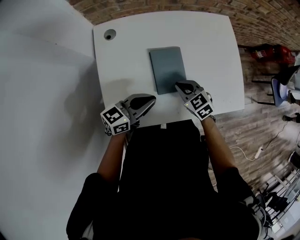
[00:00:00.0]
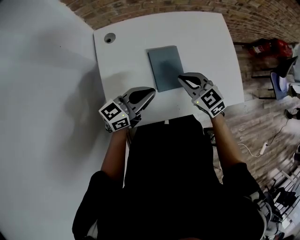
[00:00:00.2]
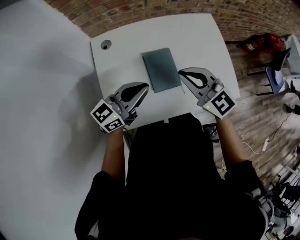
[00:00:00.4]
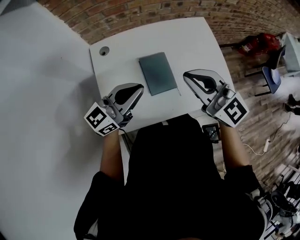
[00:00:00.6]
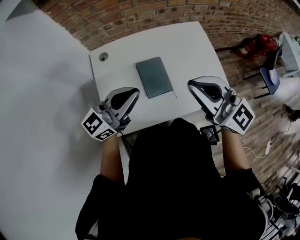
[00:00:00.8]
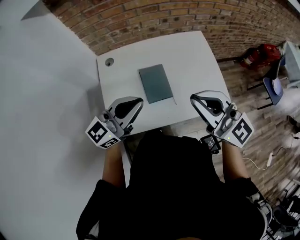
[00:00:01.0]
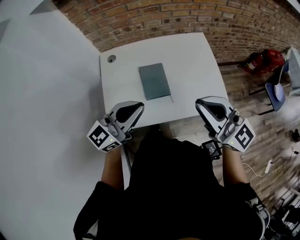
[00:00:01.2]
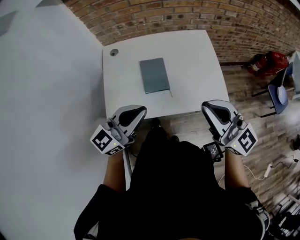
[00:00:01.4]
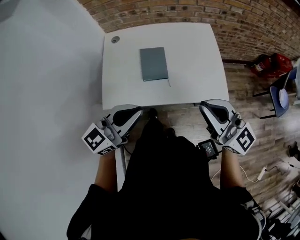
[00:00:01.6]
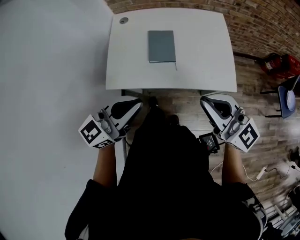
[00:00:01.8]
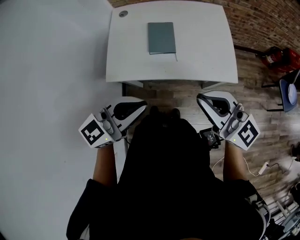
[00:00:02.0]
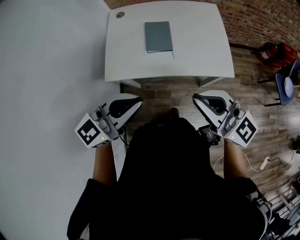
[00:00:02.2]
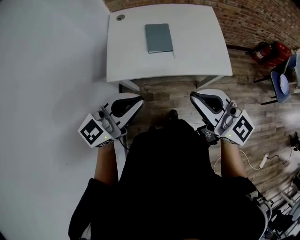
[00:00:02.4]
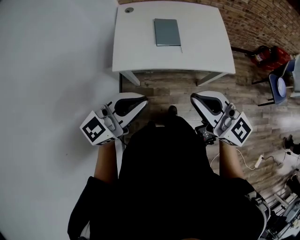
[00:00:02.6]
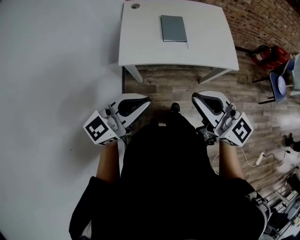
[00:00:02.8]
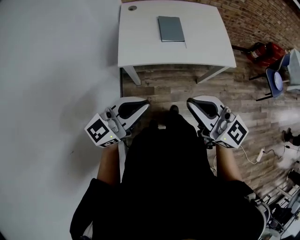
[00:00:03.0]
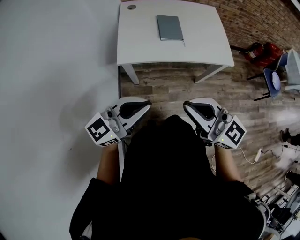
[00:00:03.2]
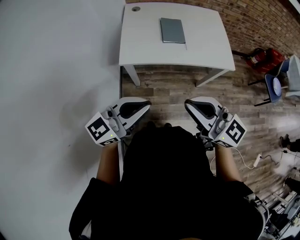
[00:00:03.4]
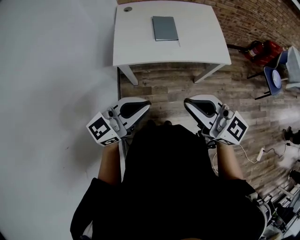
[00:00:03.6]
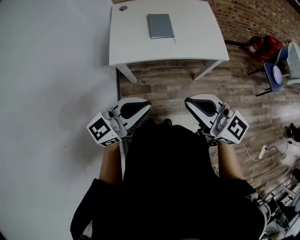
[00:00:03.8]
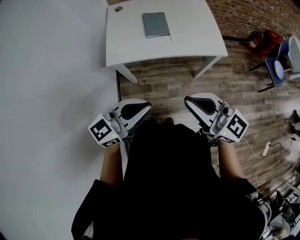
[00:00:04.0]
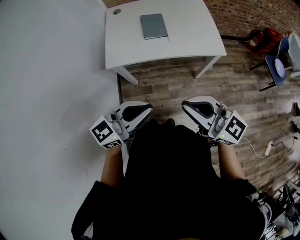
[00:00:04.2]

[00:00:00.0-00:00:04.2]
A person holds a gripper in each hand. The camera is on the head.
00:00:00.0 to 00:00:01.4: The right gripper goes approximately 50 cm upward, backward and to the right, and points its fingers about 50 degrees further upward. The left gripper goes approximately 25 cm upward and backward, and rotates about 30 degrees.
00:00:01.4 to 00:00:02.8: The left gripper shifts roughly 25 cm backward. Meanwhile the right gripper is displaced backward and to the left by about 25 cm.
00:00:02.8 to 00:00:04.2: The two grippers go approximately 10 cm to the right and backward.

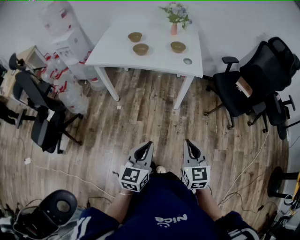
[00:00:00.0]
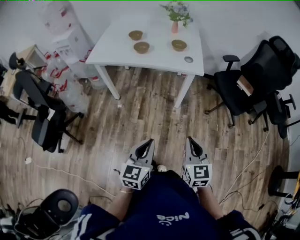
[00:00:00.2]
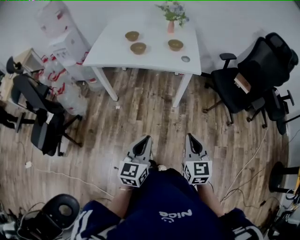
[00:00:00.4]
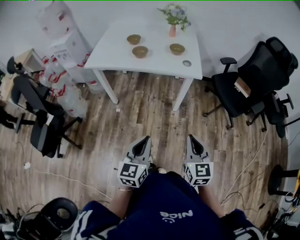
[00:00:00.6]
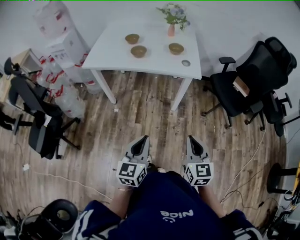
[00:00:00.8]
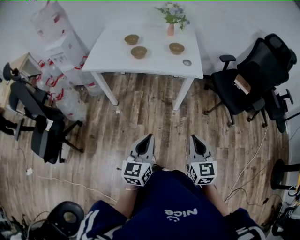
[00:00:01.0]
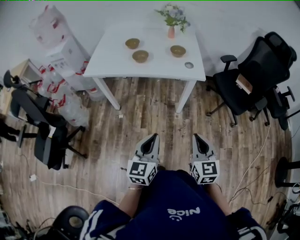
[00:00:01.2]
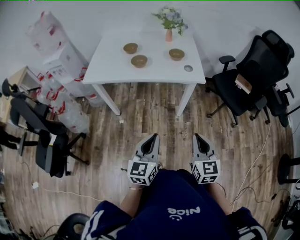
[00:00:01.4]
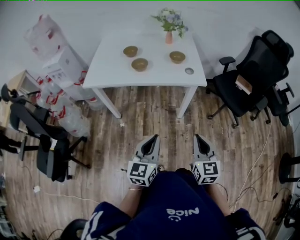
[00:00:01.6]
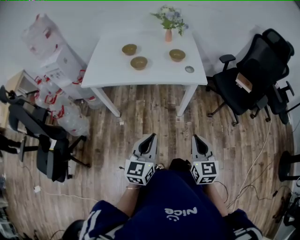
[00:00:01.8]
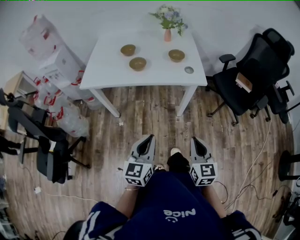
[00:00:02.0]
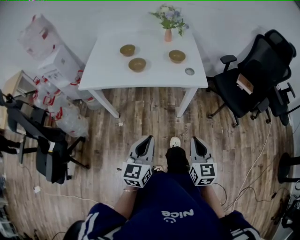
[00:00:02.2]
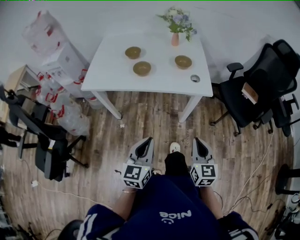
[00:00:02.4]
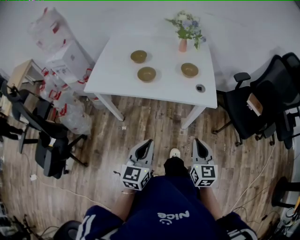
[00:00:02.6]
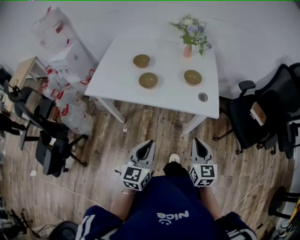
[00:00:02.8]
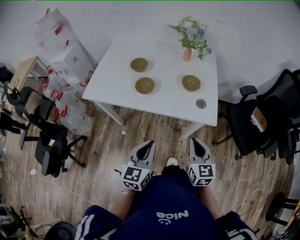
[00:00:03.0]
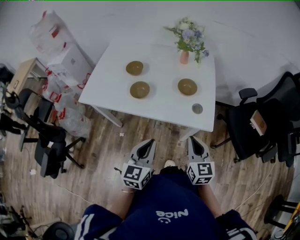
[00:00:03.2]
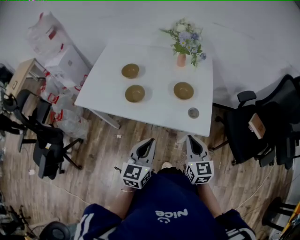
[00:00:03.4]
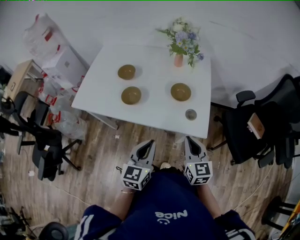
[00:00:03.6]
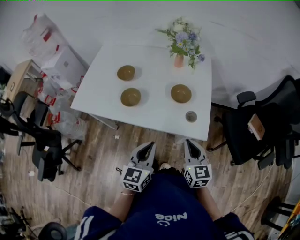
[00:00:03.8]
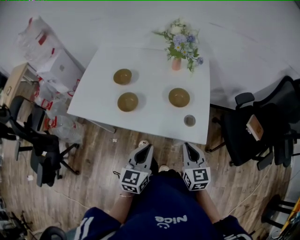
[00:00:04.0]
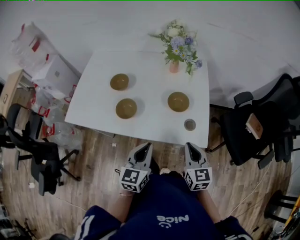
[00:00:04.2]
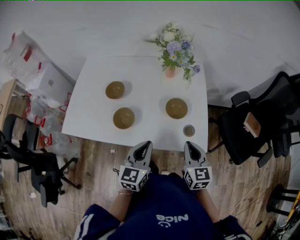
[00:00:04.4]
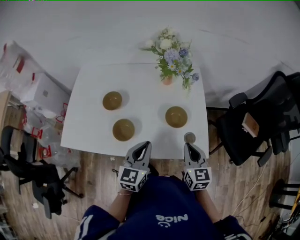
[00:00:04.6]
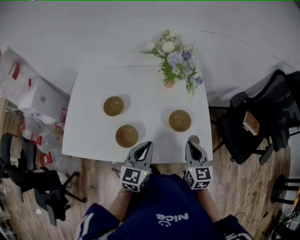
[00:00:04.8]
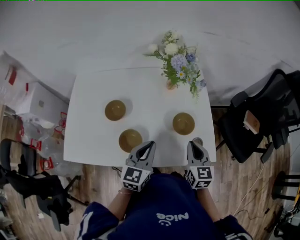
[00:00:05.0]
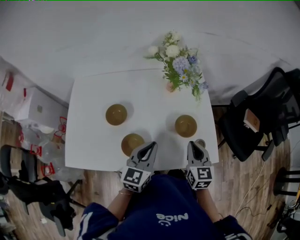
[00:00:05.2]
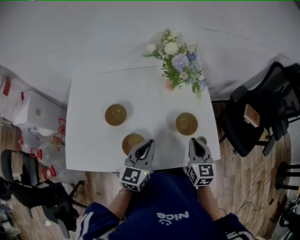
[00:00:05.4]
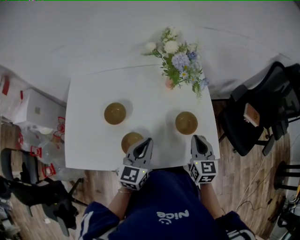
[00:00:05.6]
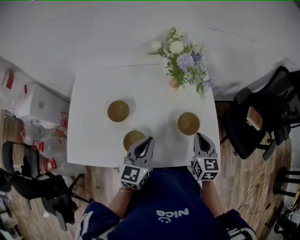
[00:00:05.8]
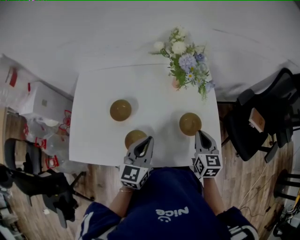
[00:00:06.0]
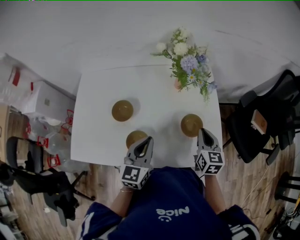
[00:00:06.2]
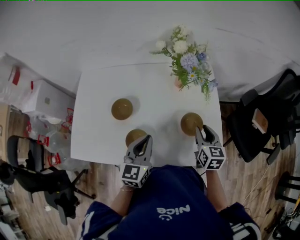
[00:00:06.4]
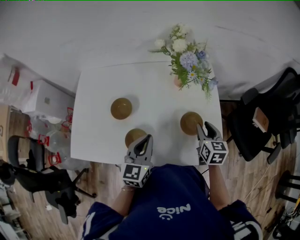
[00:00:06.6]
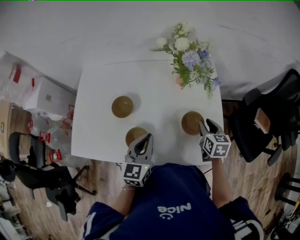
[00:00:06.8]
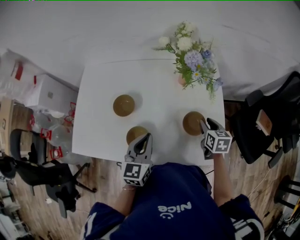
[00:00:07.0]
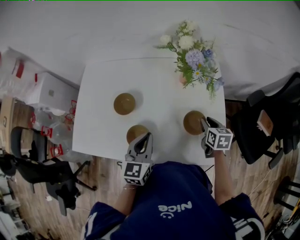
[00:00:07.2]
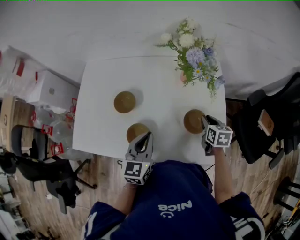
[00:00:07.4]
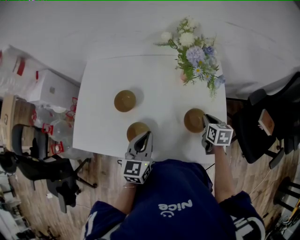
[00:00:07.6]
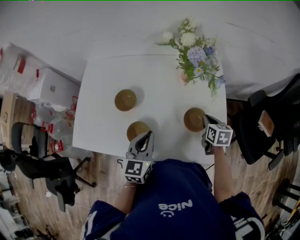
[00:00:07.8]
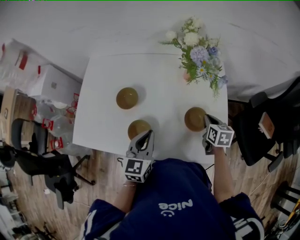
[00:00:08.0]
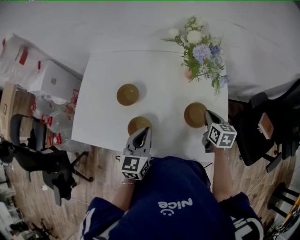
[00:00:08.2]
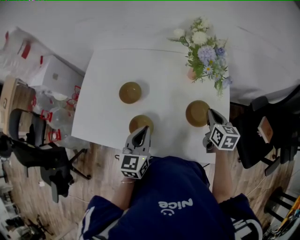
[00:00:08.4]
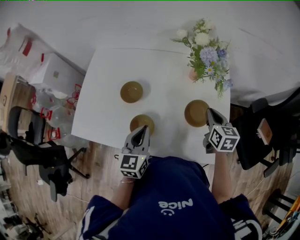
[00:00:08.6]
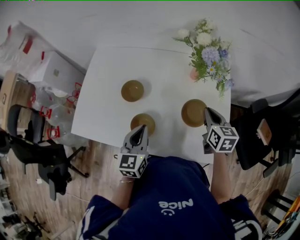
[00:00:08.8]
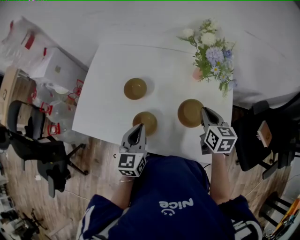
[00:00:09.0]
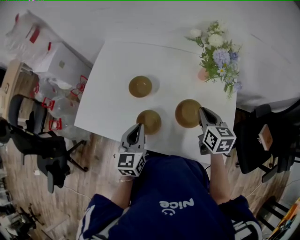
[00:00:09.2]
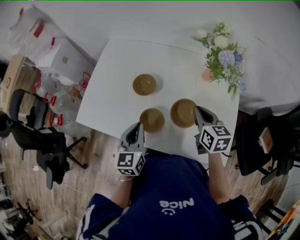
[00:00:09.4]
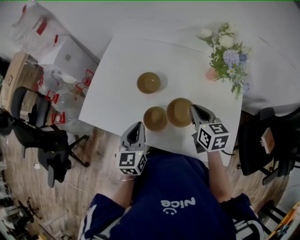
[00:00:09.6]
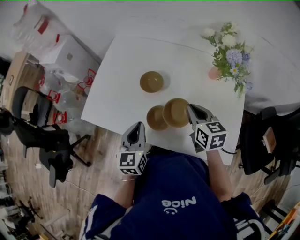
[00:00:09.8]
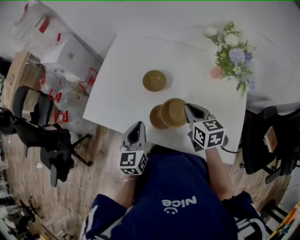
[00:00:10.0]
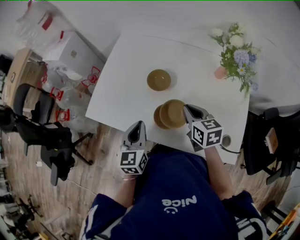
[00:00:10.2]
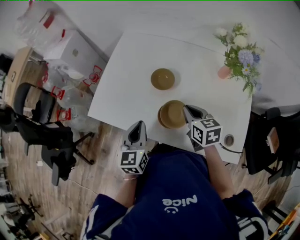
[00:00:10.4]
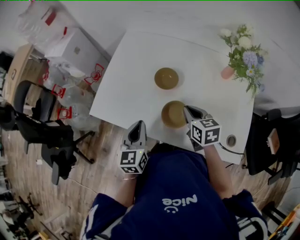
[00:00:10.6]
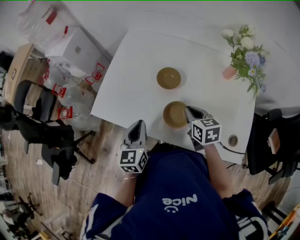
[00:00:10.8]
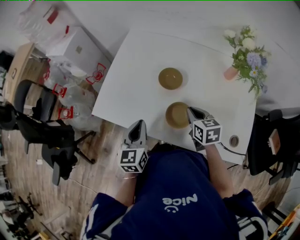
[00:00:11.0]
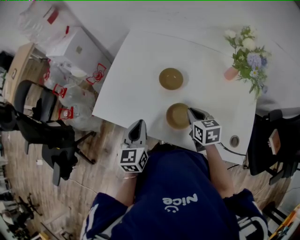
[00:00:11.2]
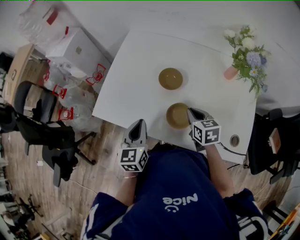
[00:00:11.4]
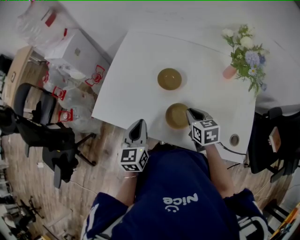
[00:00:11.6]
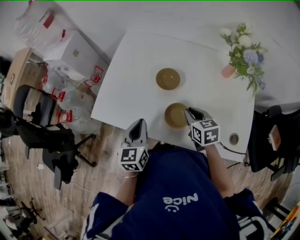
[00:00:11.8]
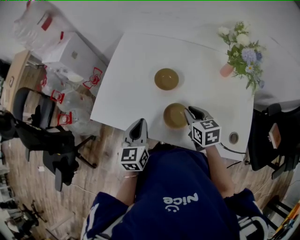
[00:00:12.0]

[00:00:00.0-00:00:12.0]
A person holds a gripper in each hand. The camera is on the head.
00:00:00.0 to 00:00:01.6: The right gripper moves forward, approximately 10 cm. Meanwhile the left gripper travels forward and to the left by roughly 15 cm.
00:00:01.6 to 00:00:03.0: Both grippers move forward, roughly 25 cm.
00:00:03.0 to 00:00:04.4: Both grippers travel together forward, some 20 cm.
00:00:04.4 to 00:00:06.0: The left gripper goes some 15 cm forward and to the left. The right gripper goes about 15 cm forward.
00:00:06.0 to 00:00:07.6: The right gripper shifts approximately 10 cm downward and forward, swivels about 20 degrees, and opens, then closes once more.
00:00:07.6 to 00:00:09.0: The left gripper travels to the left by about 5 cm. The right gripper goes roughly 15 cm upward and to the left.
00:00:09.0 to 00:00:10.4: The right gripper moves to the left, some 20 cm, and changes its angle by roughly 20 degrees. The left gripper moves to the left, roughly 10 cm.
00:00:10.4 to 00:00:12.0: The grippers make only small movements.

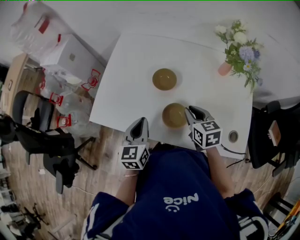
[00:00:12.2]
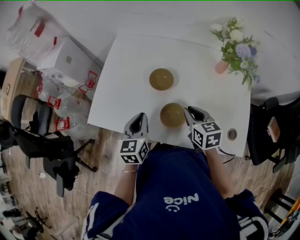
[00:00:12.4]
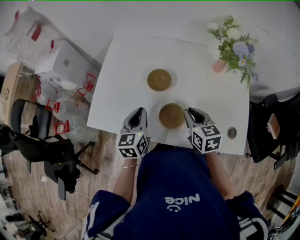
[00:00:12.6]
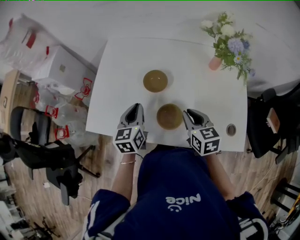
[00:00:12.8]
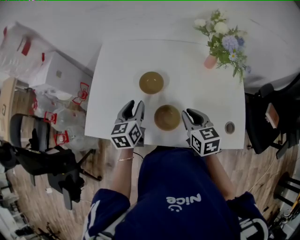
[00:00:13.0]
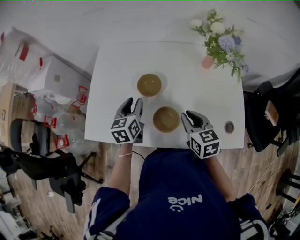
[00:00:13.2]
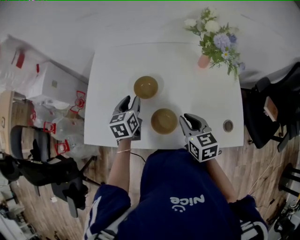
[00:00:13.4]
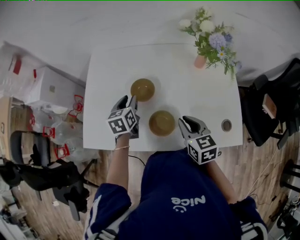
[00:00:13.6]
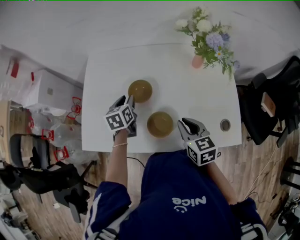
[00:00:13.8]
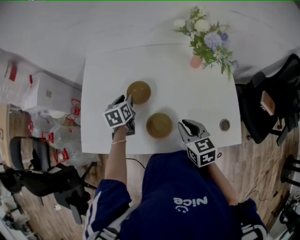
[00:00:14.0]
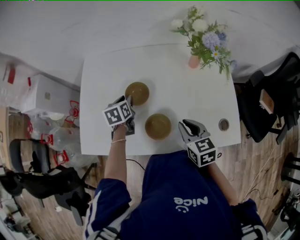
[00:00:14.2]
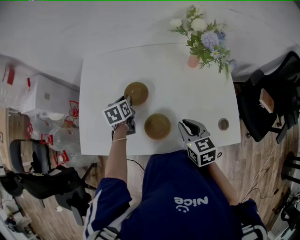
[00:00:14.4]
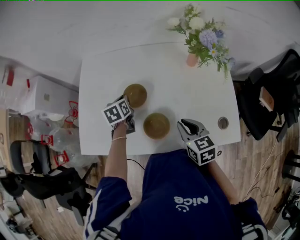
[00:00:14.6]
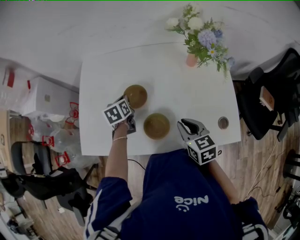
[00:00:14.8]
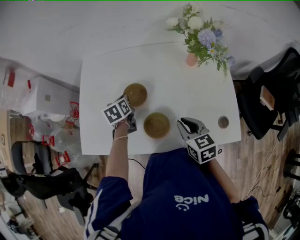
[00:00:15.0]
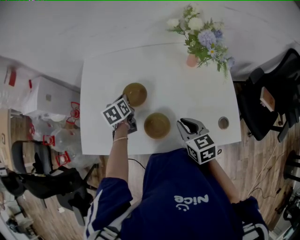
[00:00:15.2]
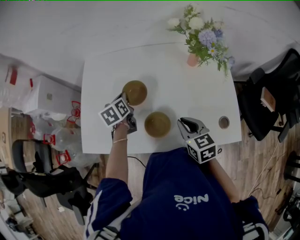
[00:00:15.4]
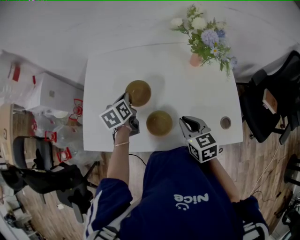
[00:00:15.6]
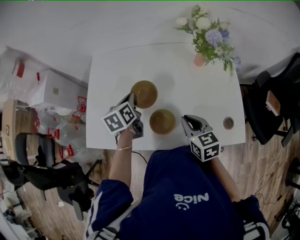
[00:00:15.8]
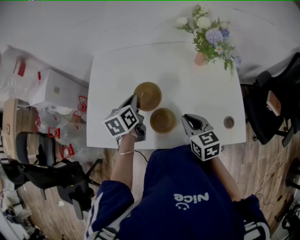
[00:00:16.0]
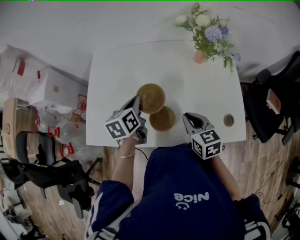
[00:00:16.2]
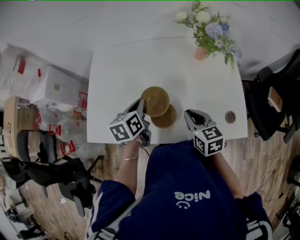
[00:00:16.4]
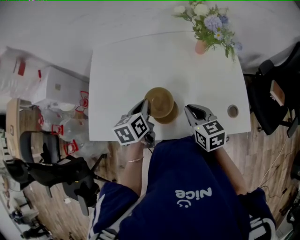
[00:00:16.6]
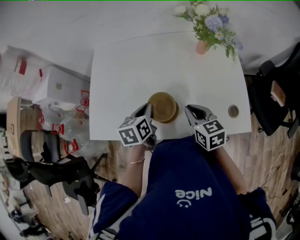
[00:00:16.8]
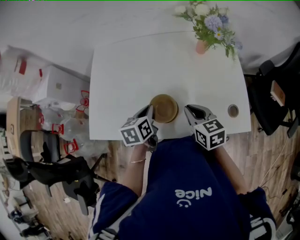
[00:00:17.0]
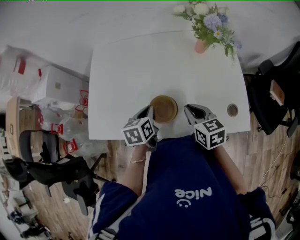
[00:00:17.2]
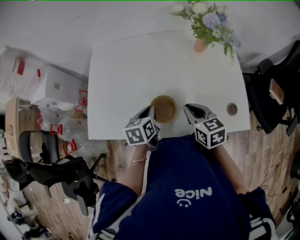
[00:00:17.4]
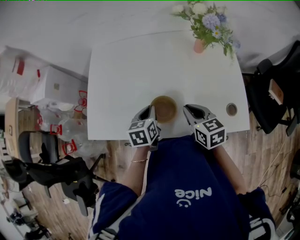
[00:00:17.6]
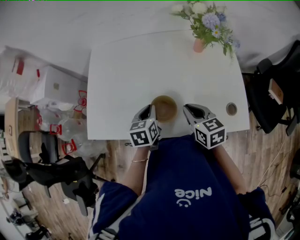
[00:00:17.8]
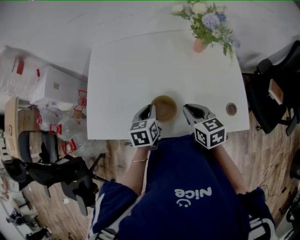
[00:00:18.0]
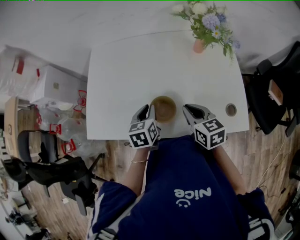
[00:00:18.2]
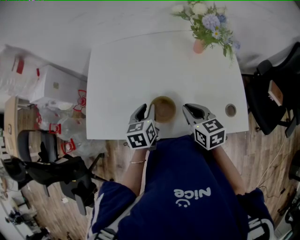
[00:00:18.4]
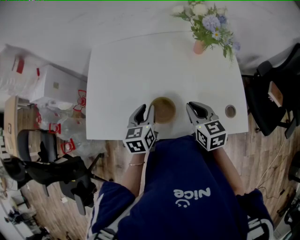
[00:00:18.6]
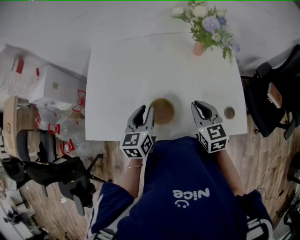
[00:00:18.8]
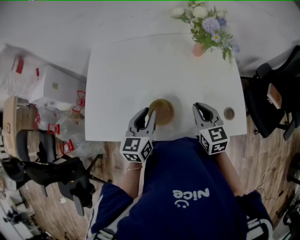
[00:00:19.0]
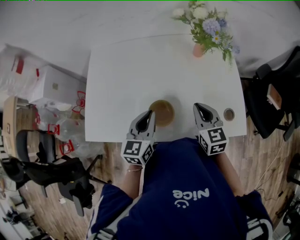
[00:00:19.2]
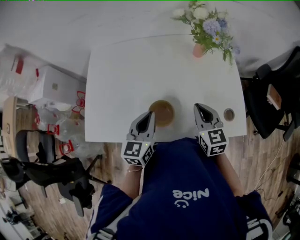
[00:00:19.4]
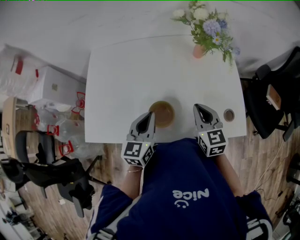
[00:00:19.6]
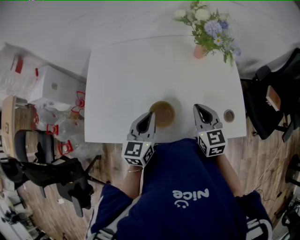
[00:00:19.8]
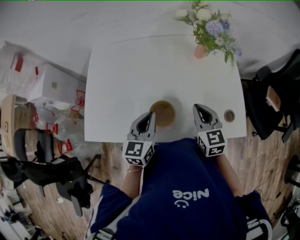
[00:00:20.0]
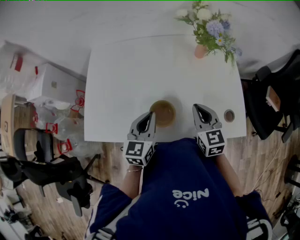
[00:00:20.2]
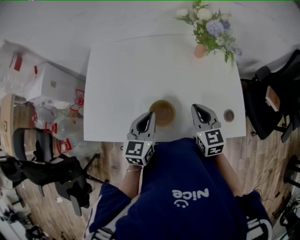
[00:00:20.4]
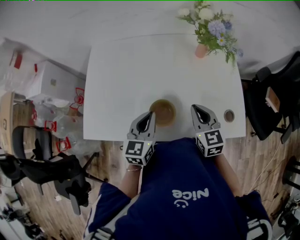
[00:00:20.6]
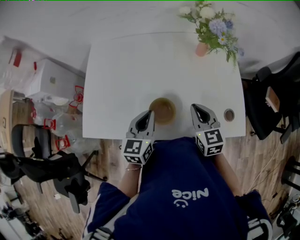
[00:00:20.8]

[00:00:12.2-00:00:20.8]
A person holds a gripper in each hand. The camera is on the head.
00:00:12.2 to 00:00:13.6: The right gripper changes place by approximately 5 cm. Meanwhile the left gripper is displaced forward by approximately 15 cm, and opens its fingers.
00:00:13.6 to 00:00:15.0: The left gripper changes place by some 5 cm, and closes its fingers.
00:00:15.0 to 00:00:16.6: The left gripper is displaced backward and upward by some 15 cm.
00:00:16.6 to 00:00:18.0: The left gripper ends up roughly 5 cm from where it was.
00:00:18.0 to 00:00:19.4: The left gripper moves upward, some 10 cm, and turns by roughly 30 degrees; the right gripper changes place by about 5 cm.
00:00:19.4 to 00:00:20.8: The grippers stay close to where they were, moving slightly.
